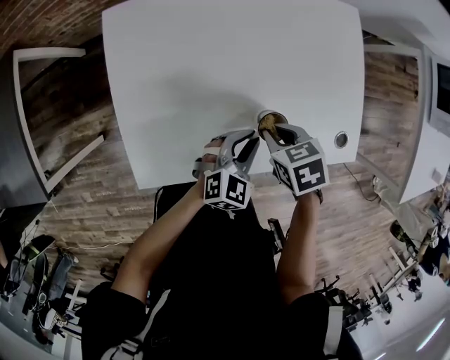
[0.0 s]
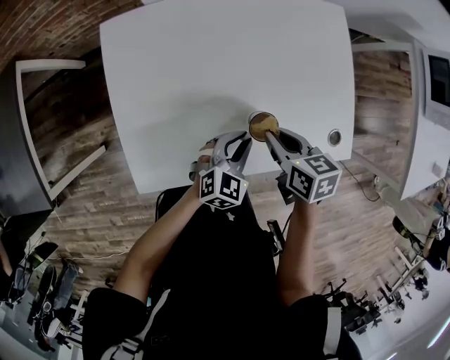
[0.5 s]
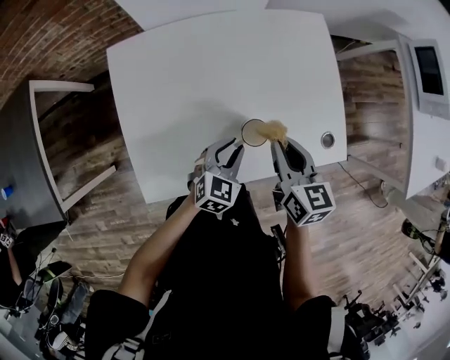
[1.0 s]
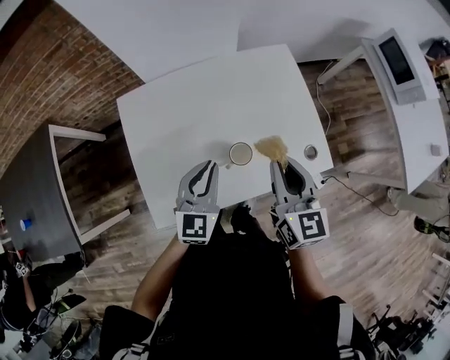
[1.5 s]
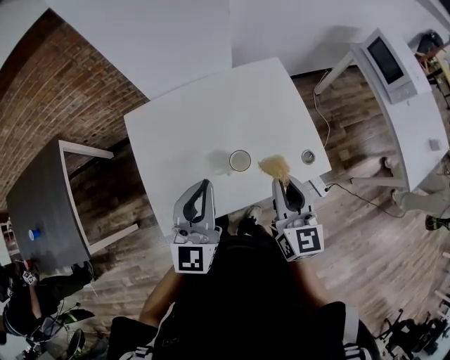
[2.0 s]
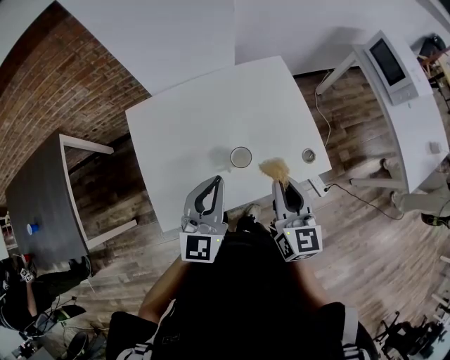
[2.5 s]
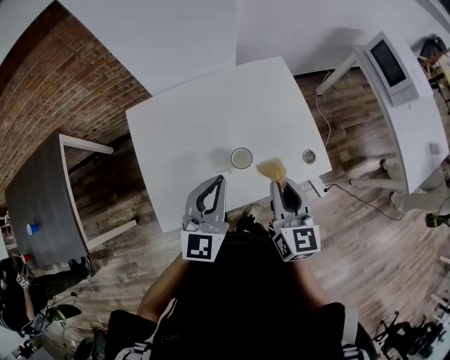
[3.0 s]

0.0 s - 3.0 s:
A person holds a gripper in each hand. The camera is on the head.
0.0 s - 1.5 s: The right gripper shifts roughly 25 cm upward, and tips its fingers upward by about 50 degrees. The left gripper travels upward and to the left by approximately 20 cm, and turns by about 30 degrees.
1.5 s - 3.0 s: The left gripper shifts approximately 10 cm upward. The right gripper is displaced backward by approximately 5 cm.

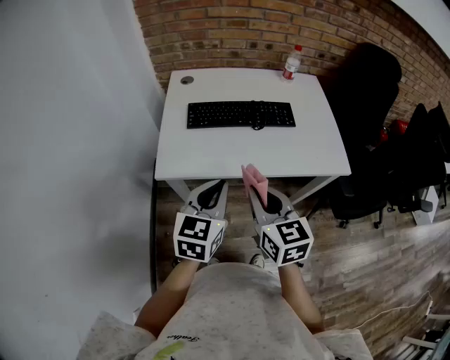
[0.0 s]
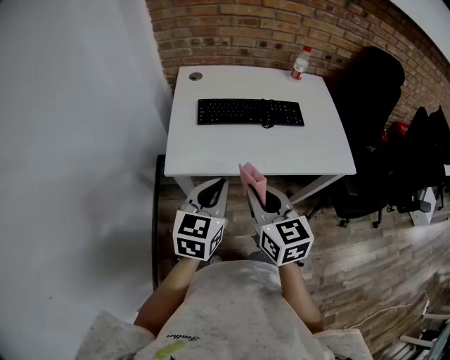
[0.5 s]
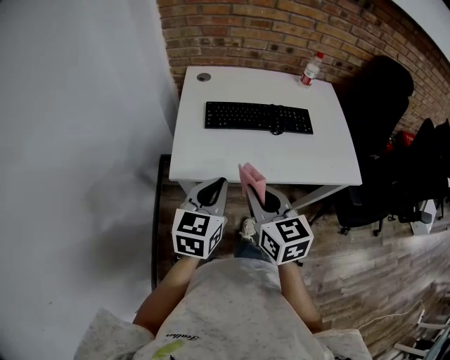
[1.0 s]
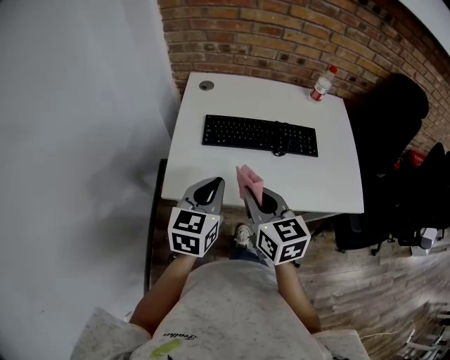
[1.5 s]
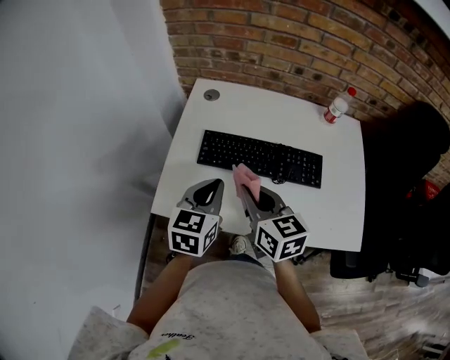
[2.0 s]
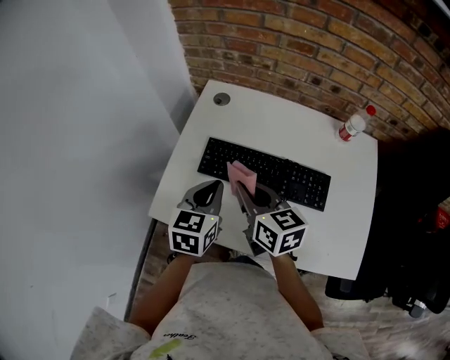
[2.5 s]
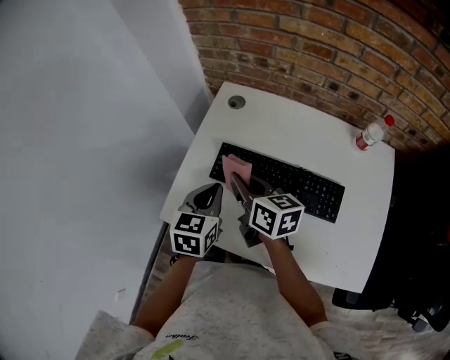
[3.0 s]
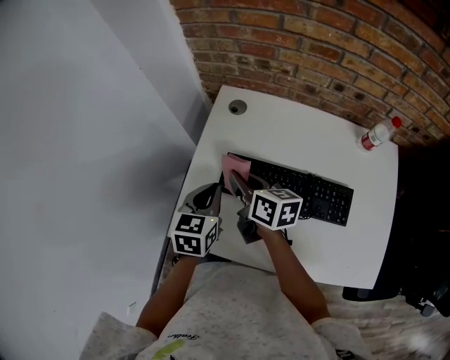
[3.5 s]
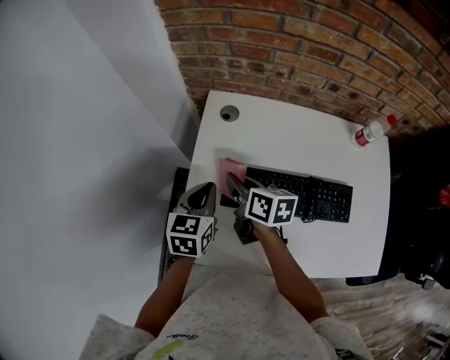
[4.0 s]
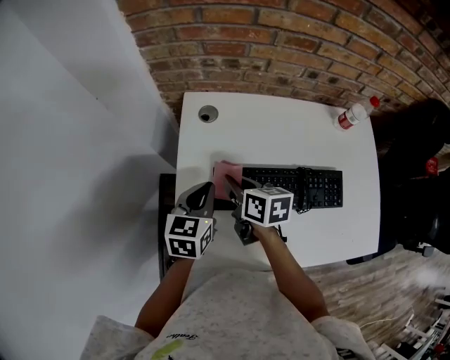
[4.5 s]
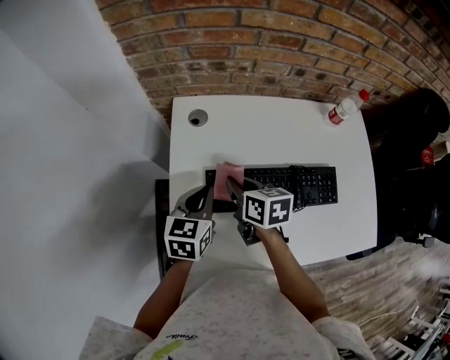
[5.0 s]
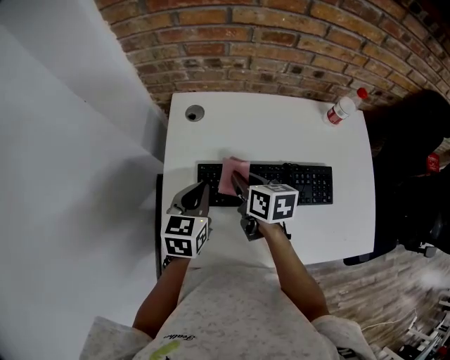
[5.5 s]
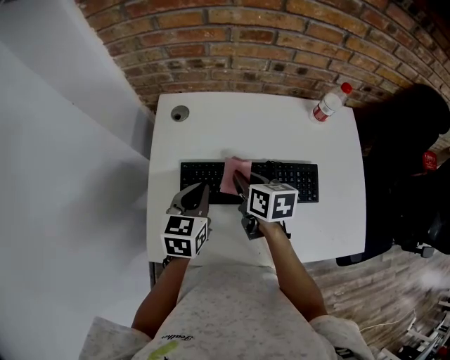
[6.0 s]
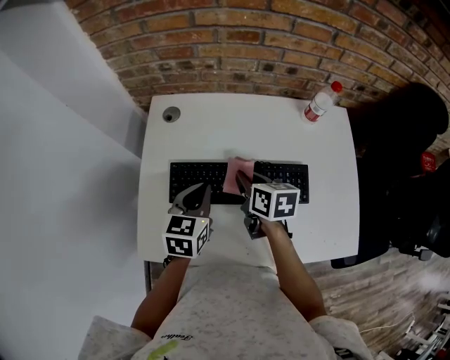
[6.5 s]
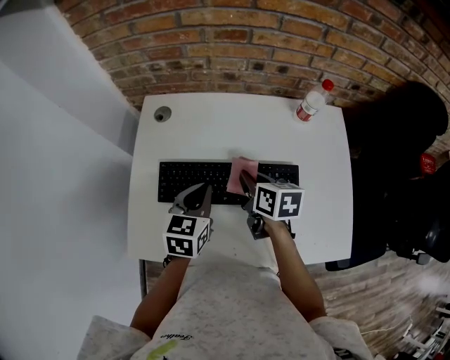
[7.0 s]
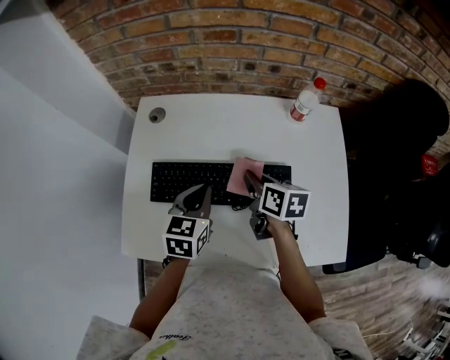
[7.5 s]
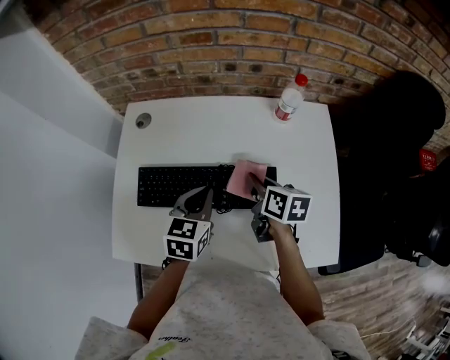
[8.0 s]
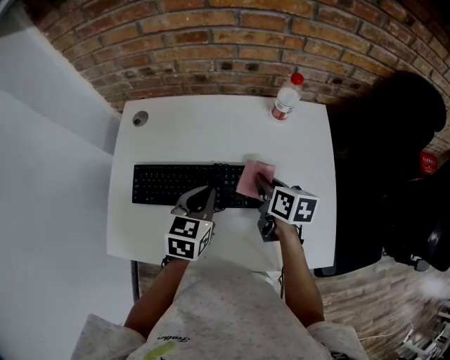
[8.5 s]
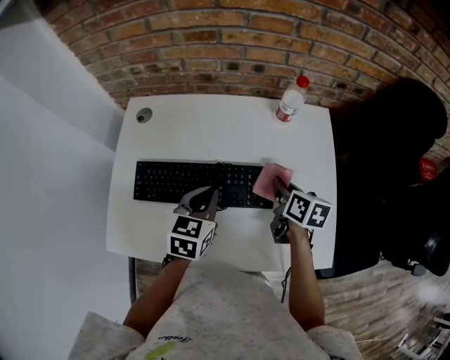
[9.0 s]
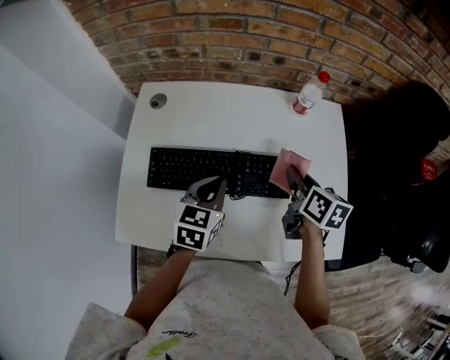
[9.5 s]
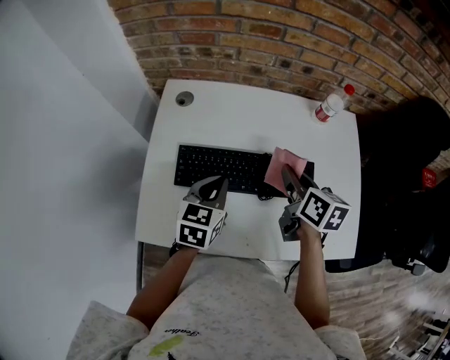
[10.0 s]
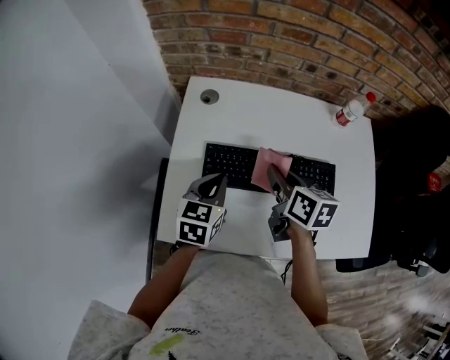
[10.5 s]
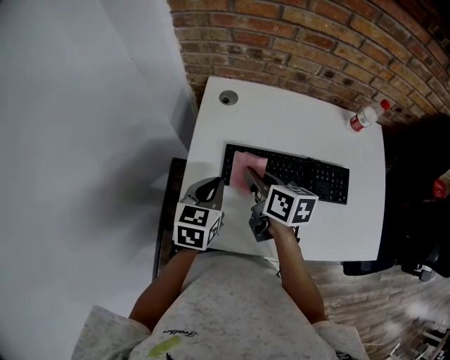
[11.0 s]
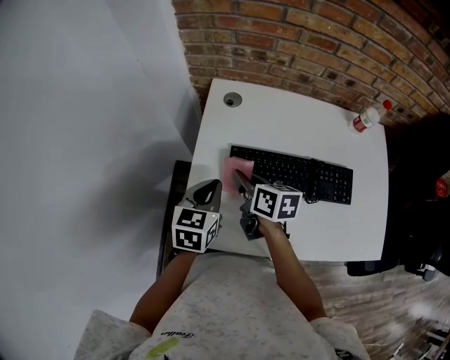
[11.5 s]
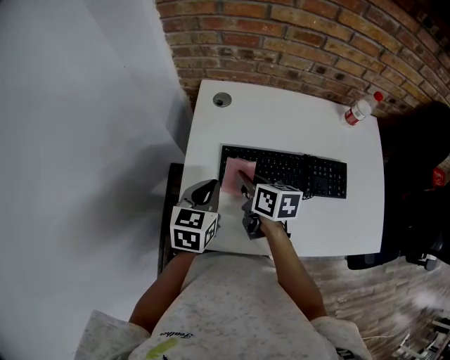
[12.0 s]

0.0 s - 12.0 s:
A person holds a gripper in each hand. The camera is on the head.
0.0 s - 2.0 s: The two grippers go about 25 cm forward.
2.0 s - 4.0 s: The left gripper goes about 20 cm forward and to the left. The right gripper shifts about 25 cm forward, and swivels some 30 degrees.
4.0 s - 6.0 s: Both grippers move to the right, some 15 cm.
6.0 s - 8.0 s: The two grippers go approximately 20 cm to the right.
8.0 s - 10.0 s: The right gripper moves upward and to the left, about 10 cm. Meanwhile the left gripper is displaced to the left by approximately 10 cm.
10.0 s - 12.0 s: The left gripper goes roughly 15 cm to the left; the right gripper heads to the left, covering approximately 25 cm.

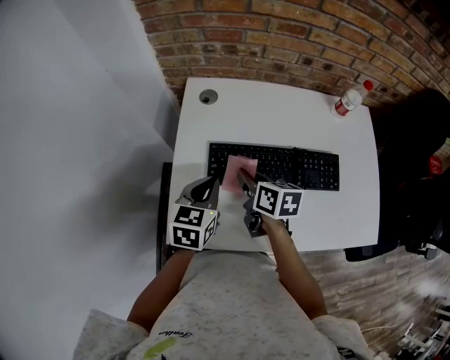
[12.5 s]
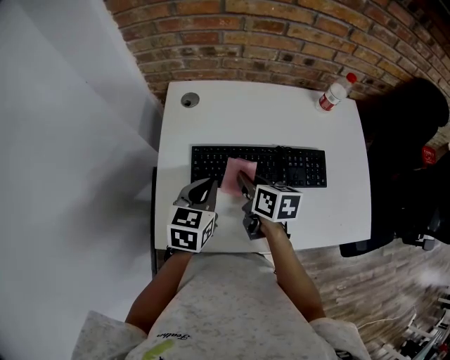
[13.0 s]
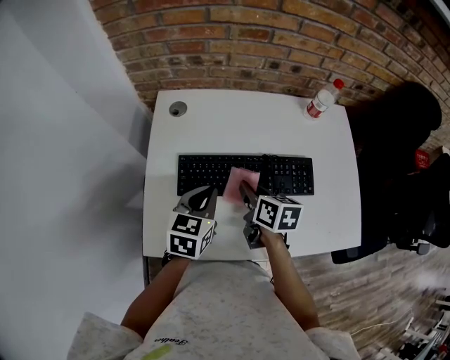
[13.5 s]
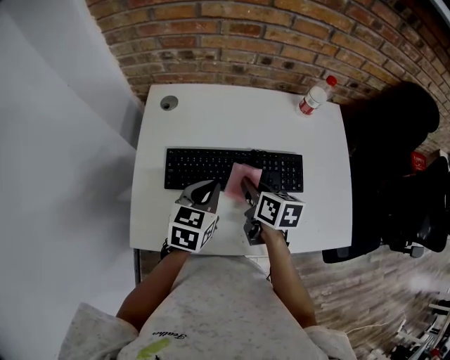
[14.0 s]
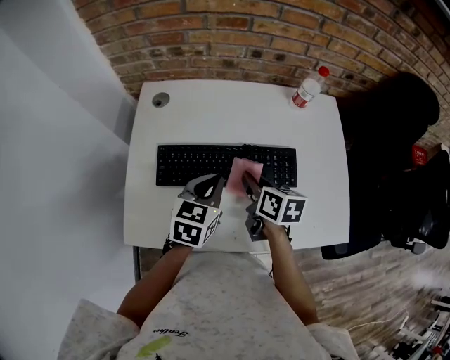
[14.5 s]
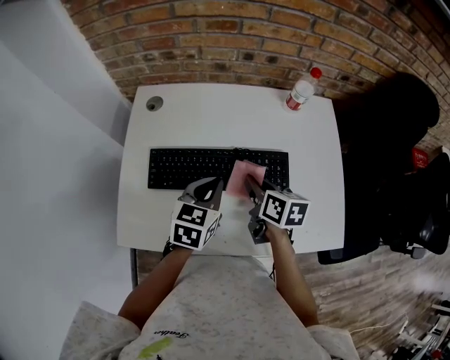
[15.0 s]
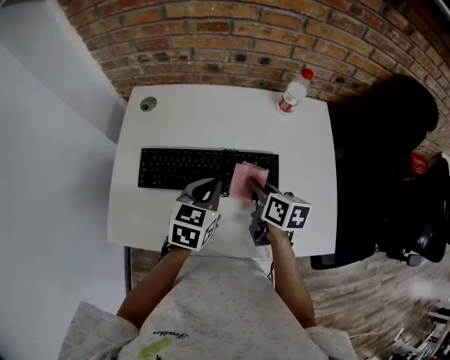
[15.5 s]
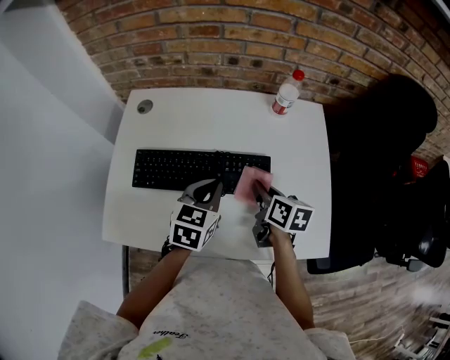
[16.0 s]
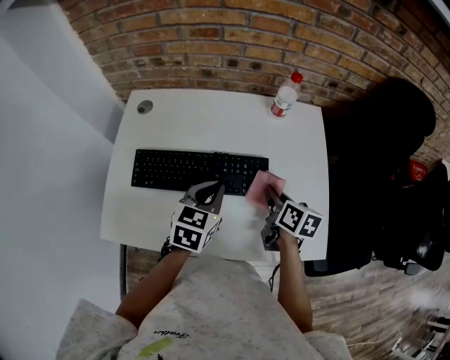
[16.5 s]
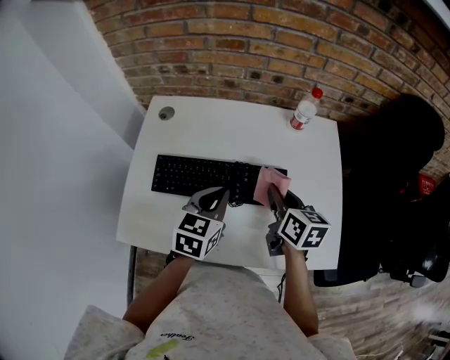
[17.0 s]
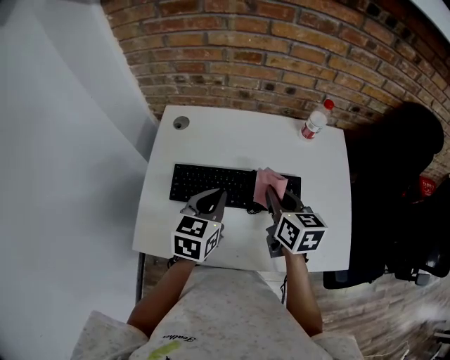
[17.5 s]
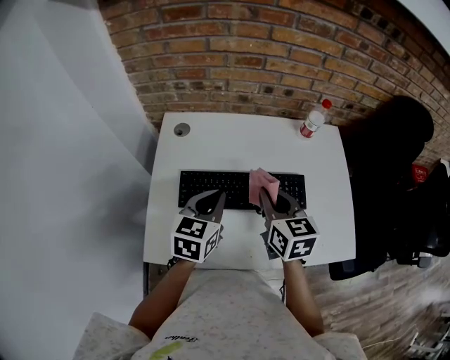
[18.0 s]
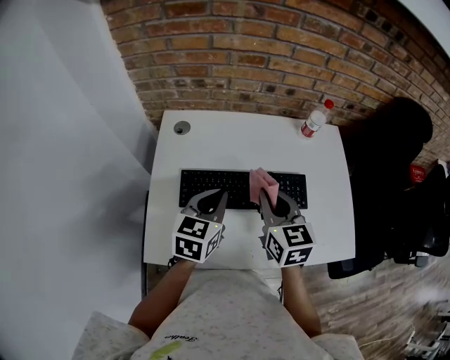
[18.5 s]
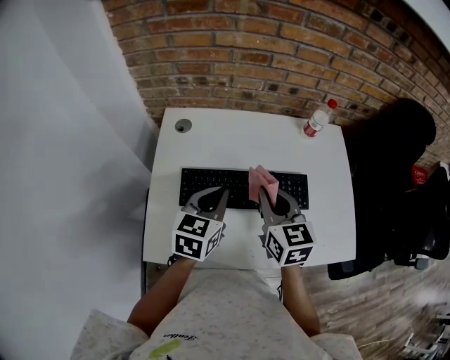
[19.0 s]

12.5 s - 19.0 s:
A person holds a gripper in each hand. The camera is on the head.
12.5 s - 14.5 s: Both grippers move to the right, about 15 cm.
14.5 s - 17.0 s: The right gripper is displaced to the right and upward by roughly 10 cm. Meanwhile the left gripper heads to the right, covering roughly 5 cm.
17.0 s - 19.0 s: The right gripper shifts about 15 cm to the left and upward, and changes its angle by approximately 30 degrees; the left gripper is displaced to the left by some 10 cm.

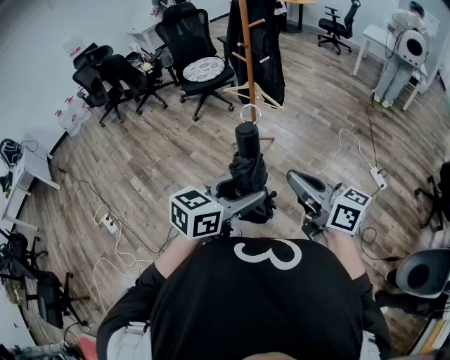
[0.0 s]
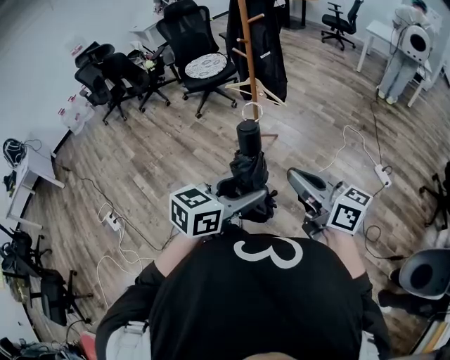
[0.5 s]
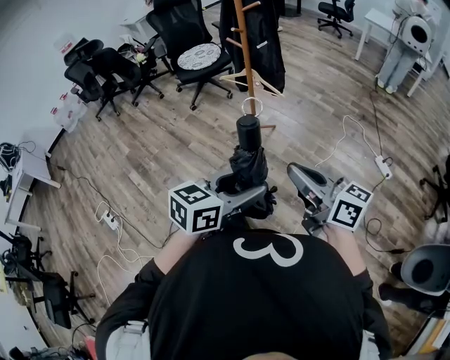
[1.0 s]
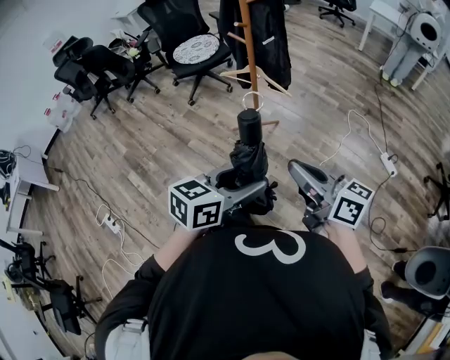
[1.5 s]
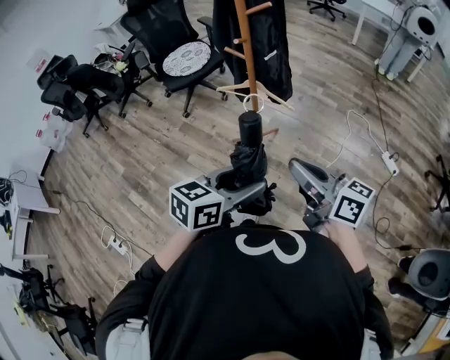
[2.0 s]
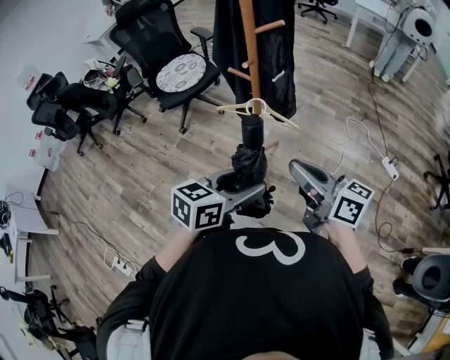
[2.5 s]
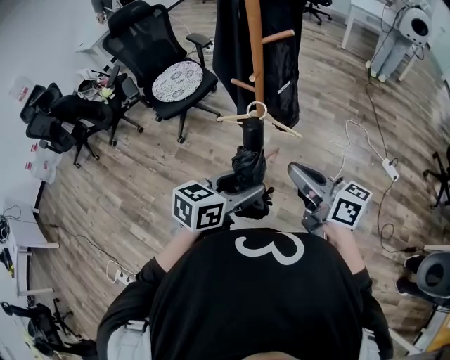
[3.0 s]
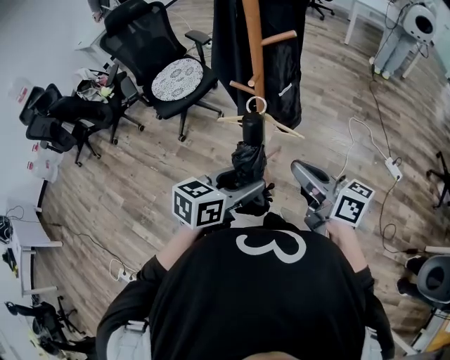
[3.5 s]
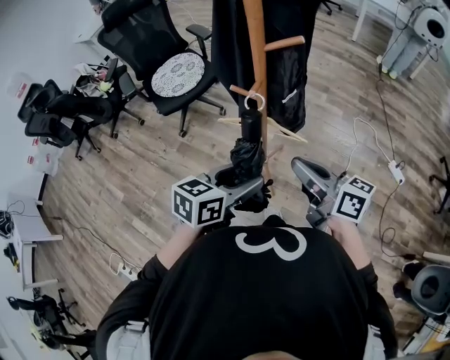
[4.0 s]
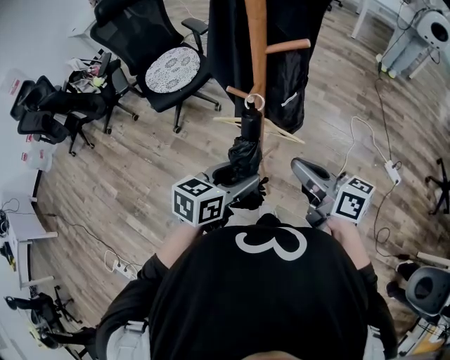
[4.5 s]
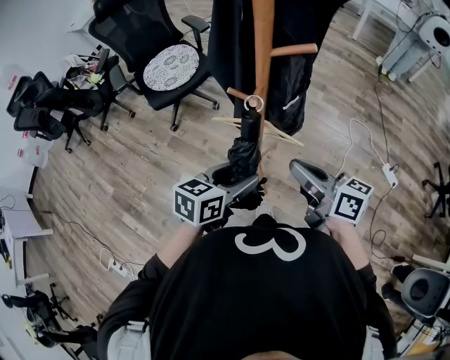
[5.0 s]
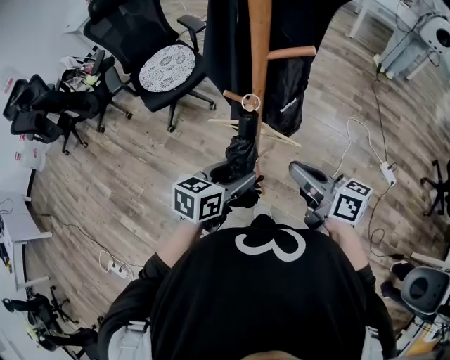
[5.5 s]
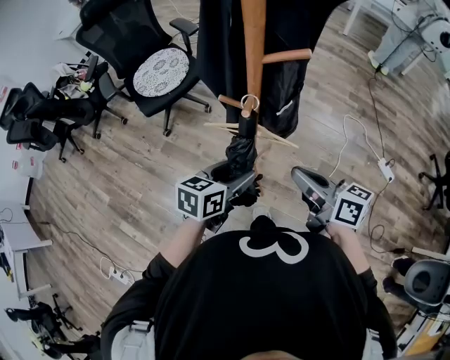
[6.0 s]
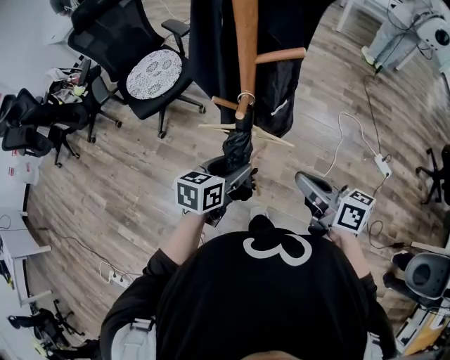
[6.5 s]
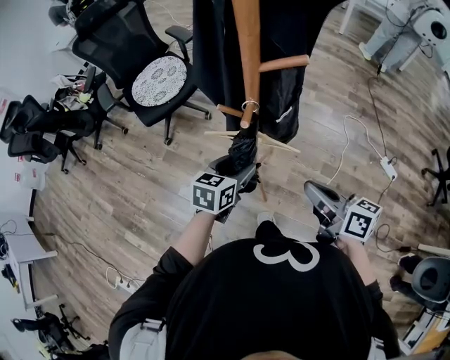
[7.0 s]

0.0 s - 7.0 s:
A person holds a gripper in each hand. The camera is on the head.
0.0 s - 2.0 s: Both grippers travel together forward, roughly 25 cm.
2.0 s - 3.5 s: The left gripper moves forward and to the left, approximately 20 cm. The right gripper is displaced forward by about 20 cm.
3.5 s - 5.0 s: The left gripper is displaced forward and downward by roughly 10 cm. The right gripper heads forward, covering some 10 cm.
5.0 s - 7.0 s: The left gripper is displaced forward and downward by approximately 10 cm, while the right gripper moves approximately 5 cm.
